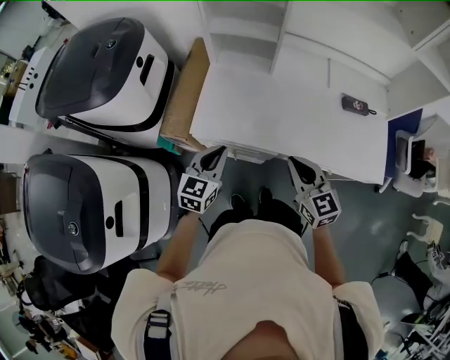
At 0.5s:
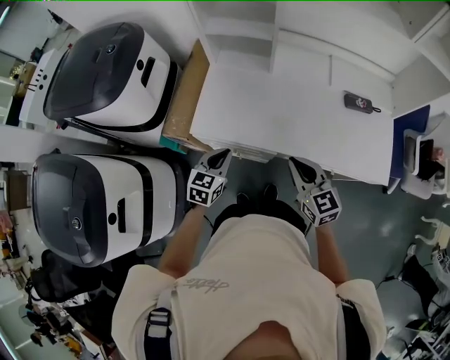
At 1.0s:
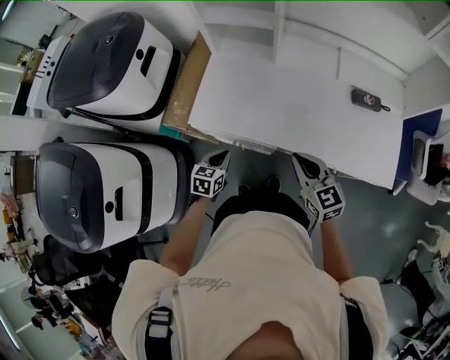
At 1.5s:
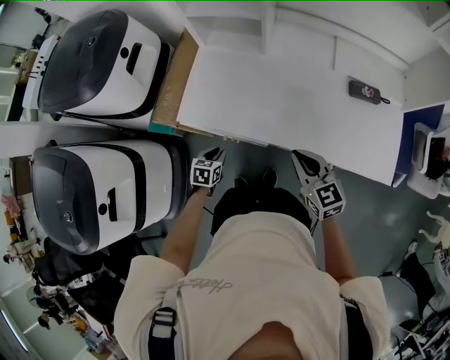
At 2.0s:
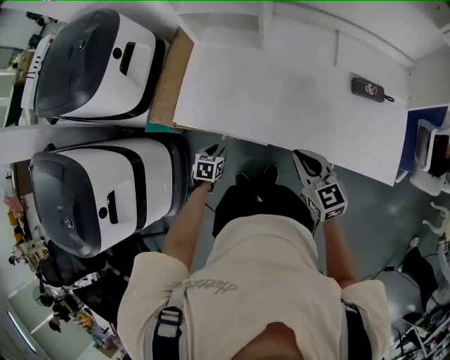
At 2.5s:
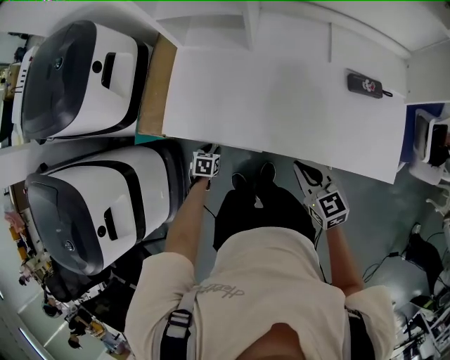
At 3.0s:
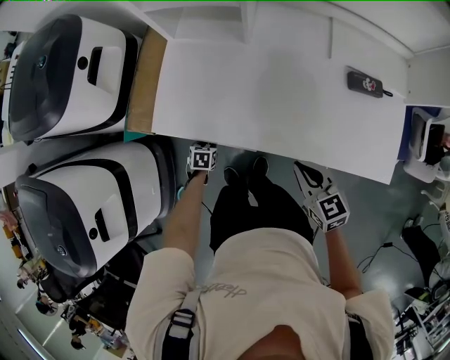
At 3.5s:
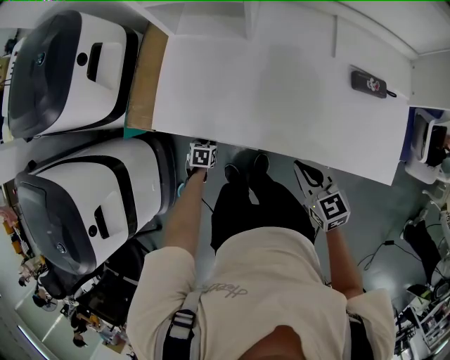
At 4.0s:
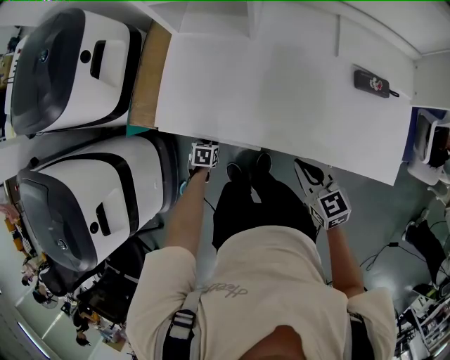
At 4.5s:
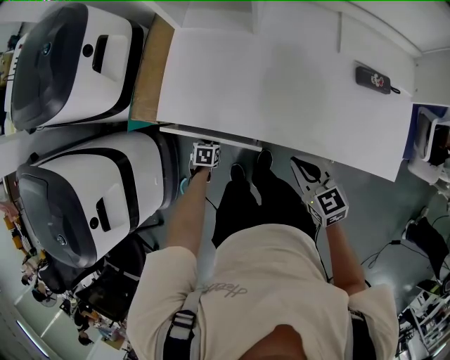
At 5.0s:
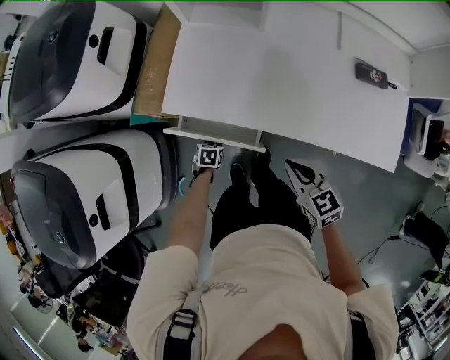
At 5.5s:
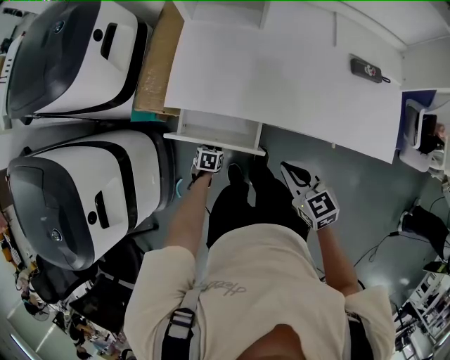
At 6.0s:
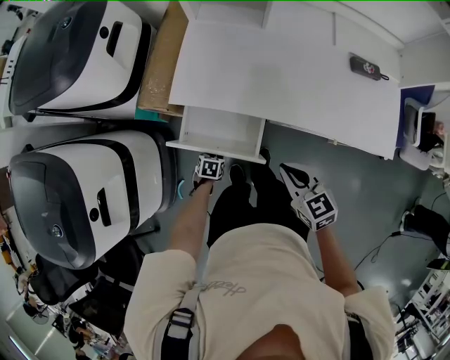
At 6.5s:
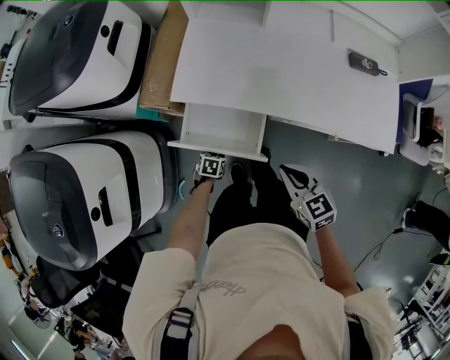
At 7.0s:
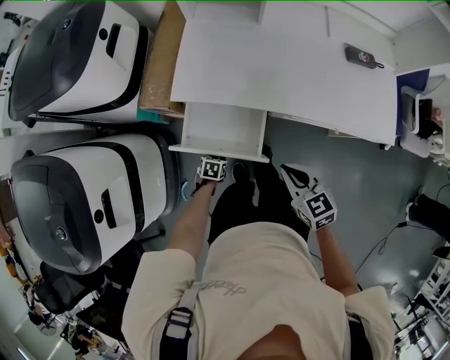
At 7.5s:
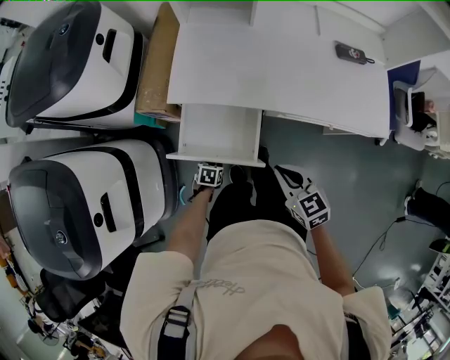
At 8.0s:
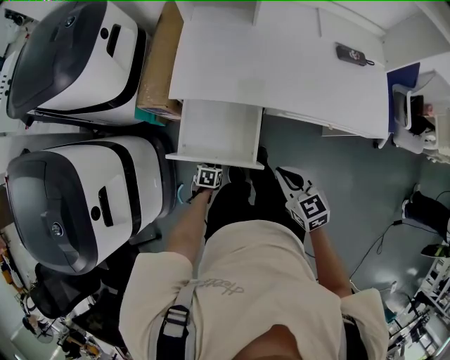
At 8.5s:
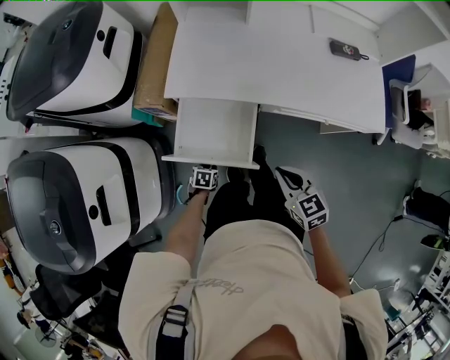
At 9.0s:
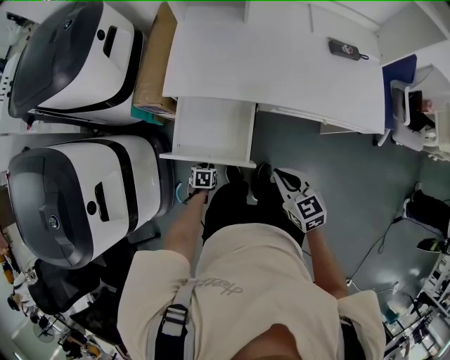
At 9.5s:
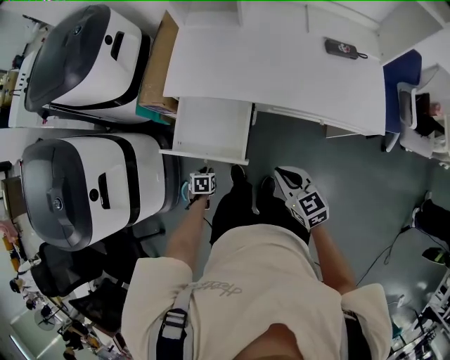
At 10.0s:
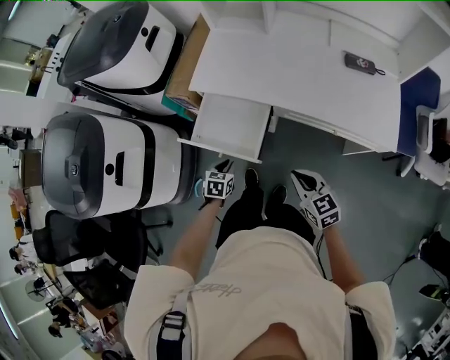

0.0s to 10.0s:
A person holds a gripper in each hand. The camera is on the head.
0.0s to 2.0s: The left gripper heads downward, covering roughly 30 cm, tilts its fingers some 40 degrees downward, and opens, while the right gripper moves to the right and downward, approximately 15 cm.
2.0s to 4.0s: The right gripper moves downward, some 5 cm. The left gripper moves downward, some 10 cm.
4.0s to 6.0s: The left gripper is displaced backward by about 15 cm, while the right gripper moves to the left and backward, about 15 cm.
6.0s to 8.0s: Both grippers move backward, about 10 cm.
8.0s to 10.0s: The right gripper goes some 15 cm to the right and backward, while the left gripper moves upward and to the right, about 20 cm, and changes its angle by some 20 degrees.

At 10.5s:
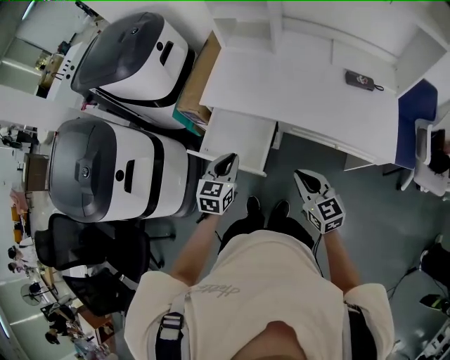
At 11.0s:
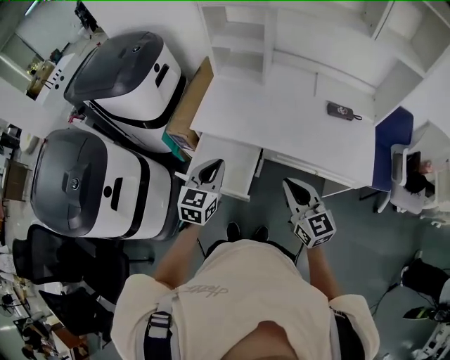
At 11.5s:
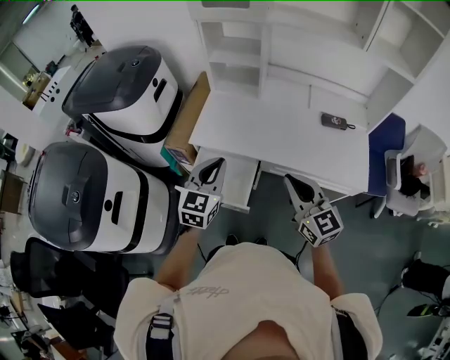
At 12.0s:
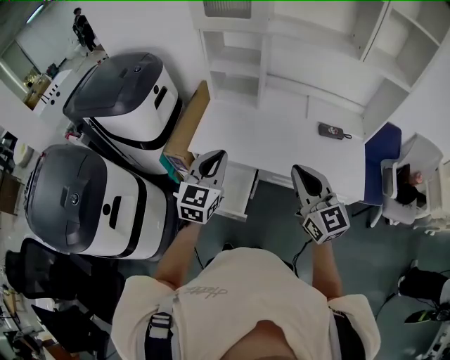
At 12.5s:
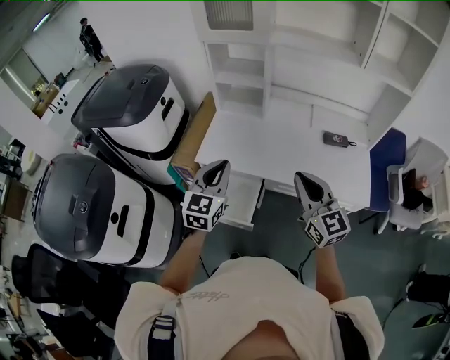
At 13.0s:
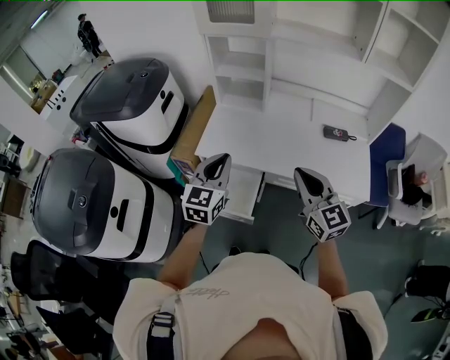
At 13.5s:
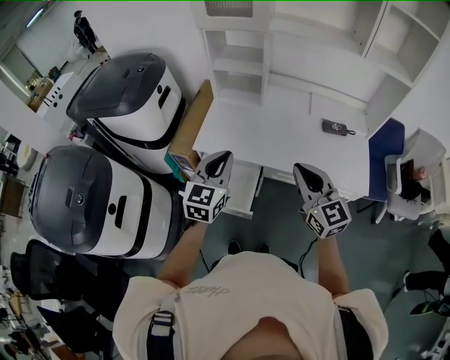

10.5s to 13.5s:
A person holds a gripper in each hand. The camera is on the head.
10.5s to 12.0s: Both grippers travel together upward, approximately 20 cm. The left gripper swivels some 20 degrees; the right gripper turns by about 20 degrees.
12.0s to 13.5s: There are only small adjustments of the grippers.

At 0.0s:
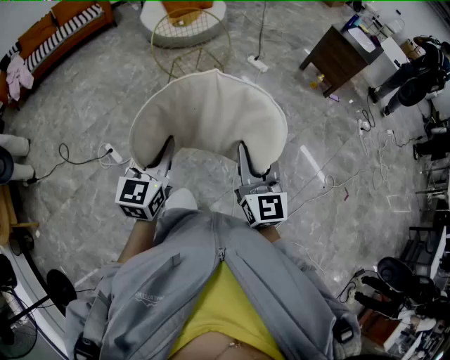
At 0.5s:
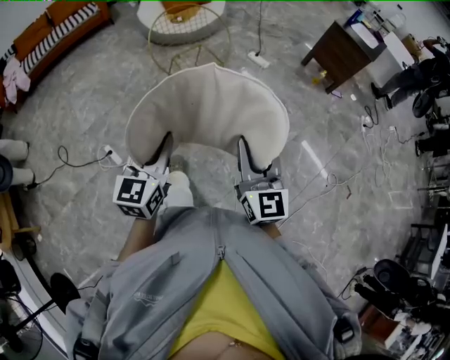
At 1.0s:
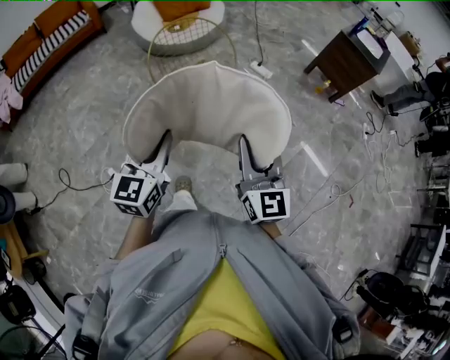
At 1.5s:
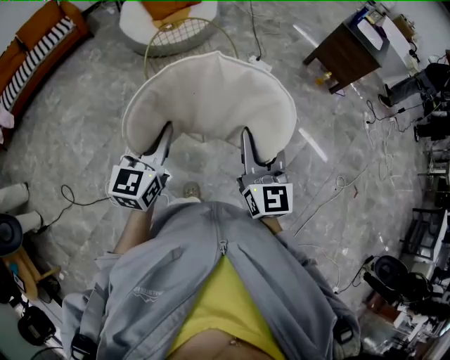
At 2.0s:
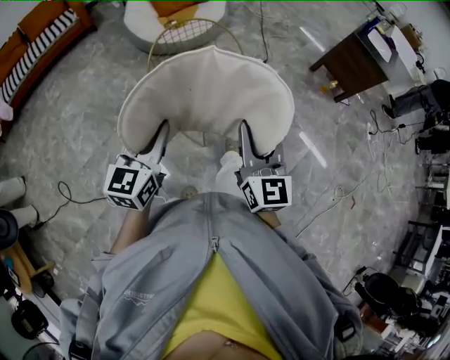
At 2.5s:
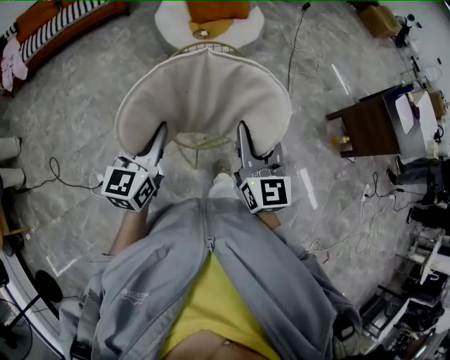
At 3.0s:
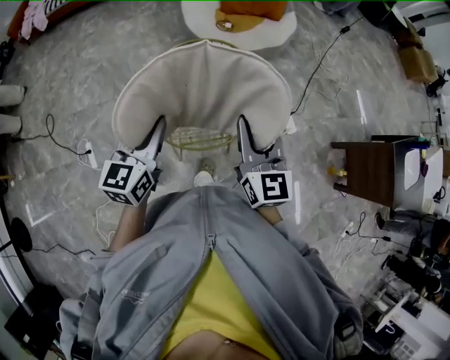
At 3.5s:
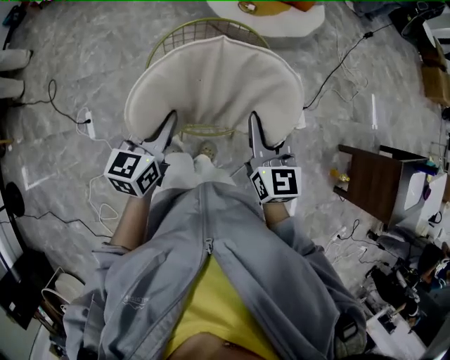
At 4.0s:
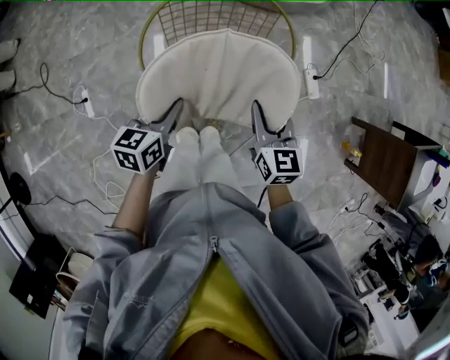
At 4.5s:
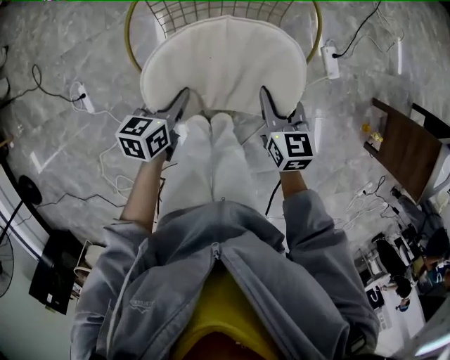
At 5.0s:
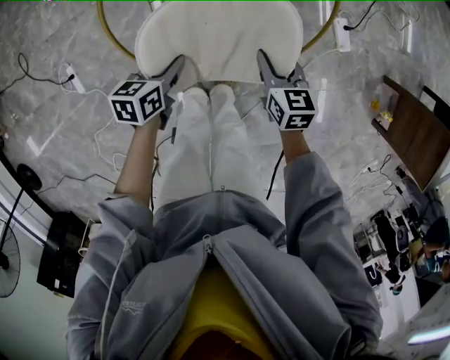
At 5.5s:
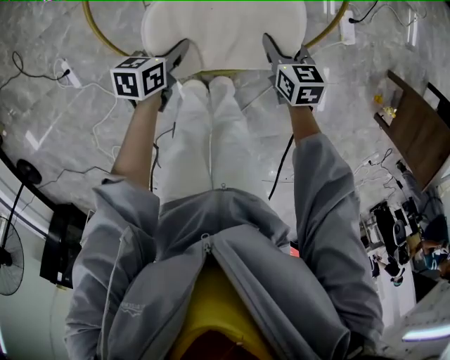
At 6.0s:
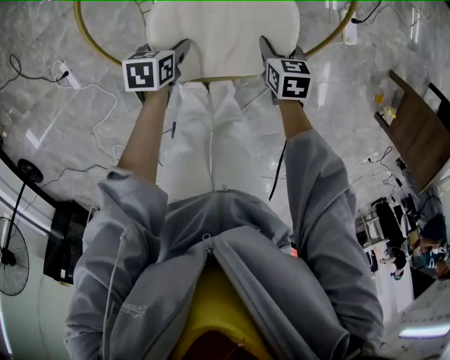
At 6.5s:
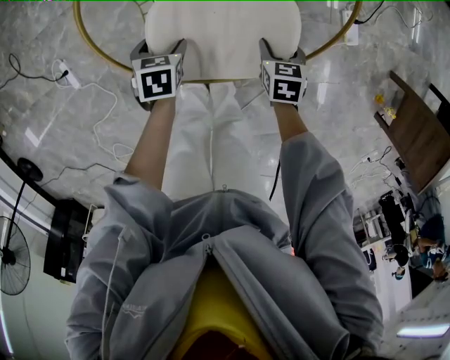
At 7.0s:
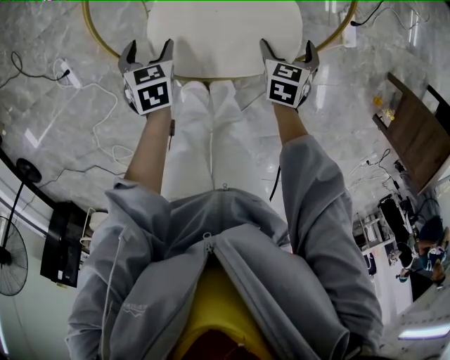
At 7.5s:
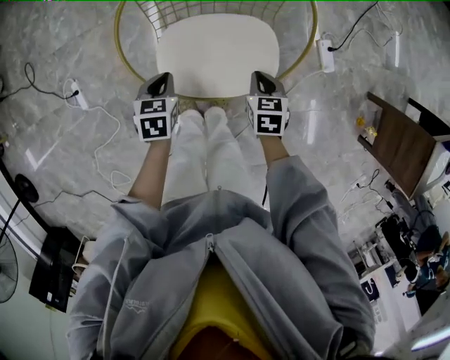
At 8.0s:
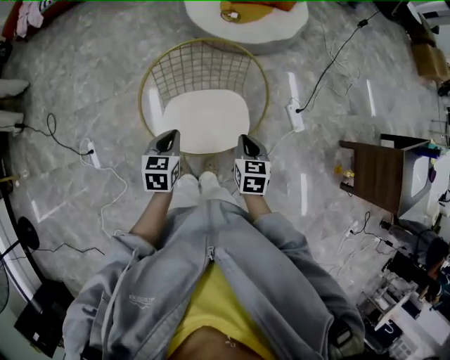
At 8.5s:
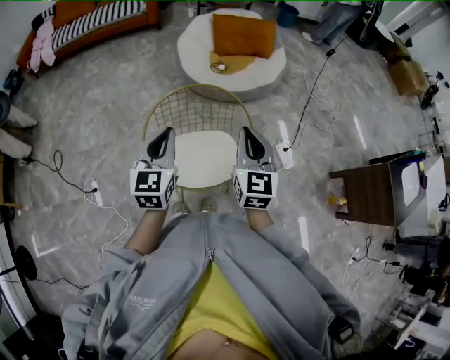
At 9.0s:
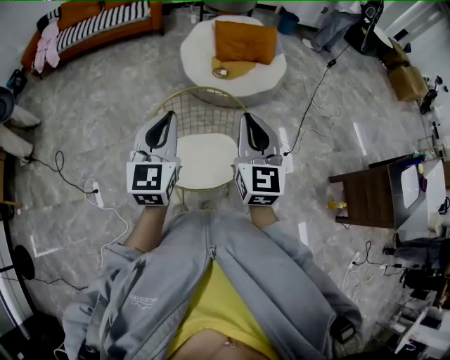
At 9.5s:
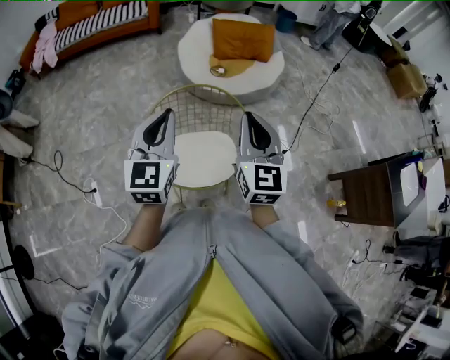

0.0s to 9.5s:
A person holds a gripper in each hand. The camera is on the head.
0.0s to 2.0s: Both grippers are carried forward, approximately 50 cm.
2.0s to 4.0s: The right gripper moves roughly 50 cm, and turns by about 50 degrees; the left gripper changes place by some 35 cm, and turns by about 40 degrees.
4.0s to 5.5s: Both grippers move downward, approximately 30 cm. The right gripper swivels about 20 degrees. The left gripper swivels some 20 degrees.
5.5s to 7.5s: The left gripper goes about 10 cm upward and to the left, swivels approximately 30 degrees, and opens, then closes once more, while the right gripper moves upward, about 5 cm, and opens, then closes again.
7.5s to 9.5s: The two grippers go some 50 cm upward. The left gripper angles its fingers upward, by roughly 50 degrees, while the right gripper angles its fingers upward, by about 60 degrees.

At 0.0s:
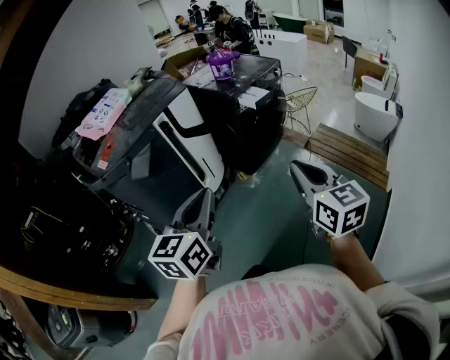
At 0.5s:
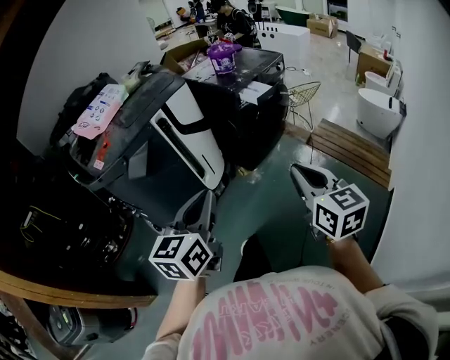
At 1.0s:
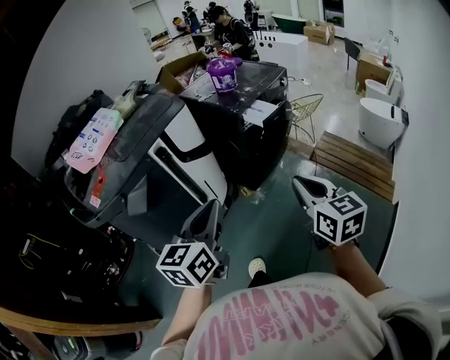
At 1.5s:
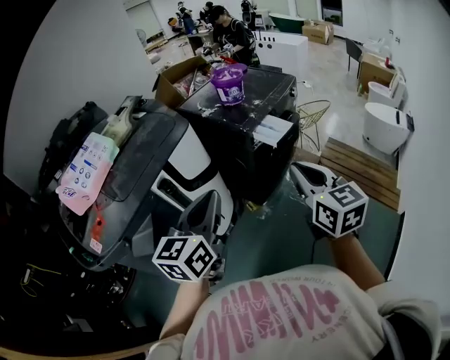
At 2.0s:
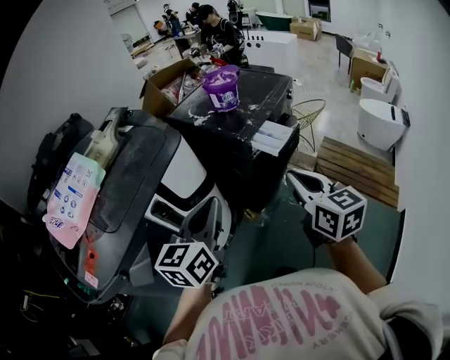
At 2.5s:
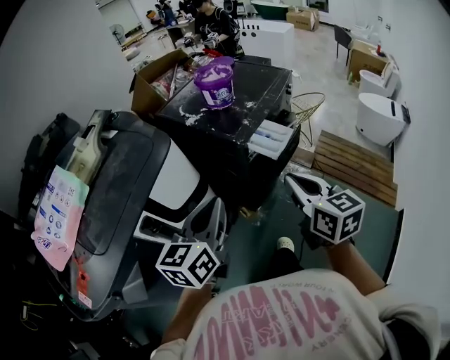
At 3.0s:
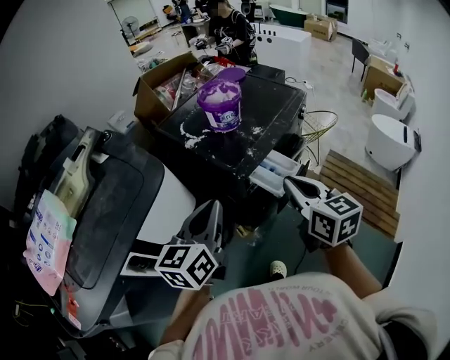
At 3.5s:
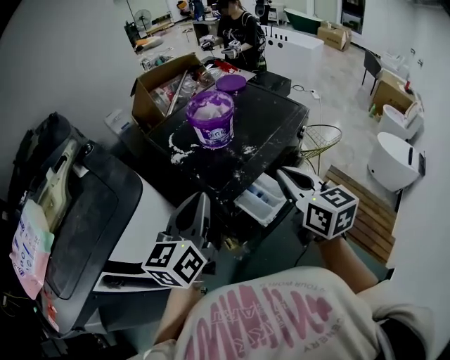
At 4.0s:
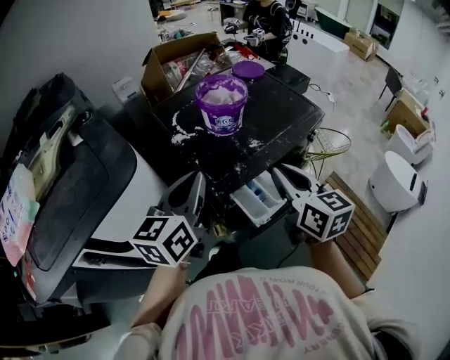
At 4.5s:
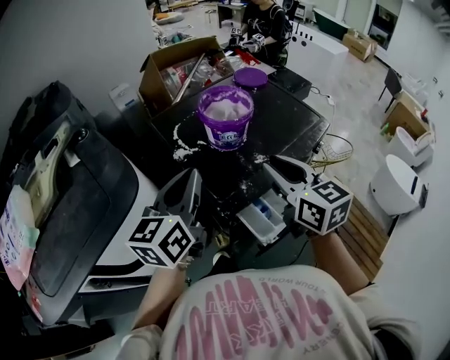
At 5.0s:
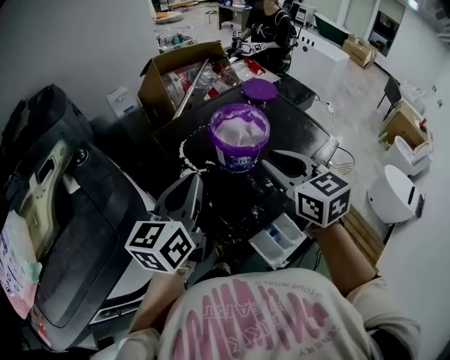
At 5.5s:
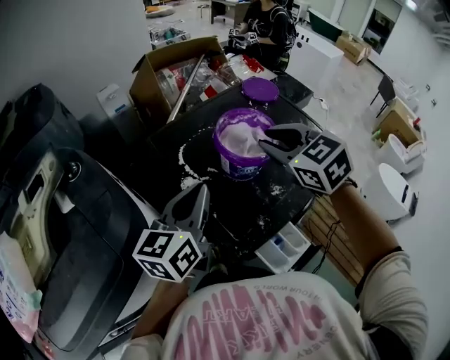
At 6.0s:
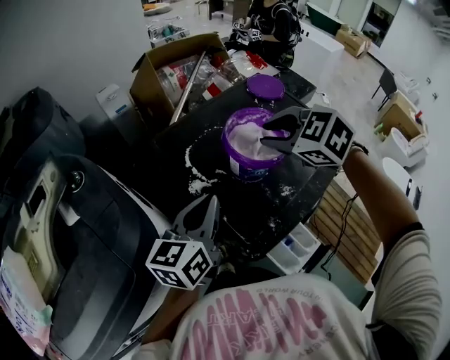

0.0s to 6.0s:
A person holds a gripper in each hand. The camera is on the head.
0.0s to 2.0s: The grippers both shift forward by some 35 cm.
2.0s to 4.0s: The grippers both shift forward by approximately 30 cm.
4.0s to 6.0s: The right gripper moves forward, roughly 30 cm, and angles its fingers downward, by some 30 degrees. The left gripper moves forward, approximately 15 cm.
